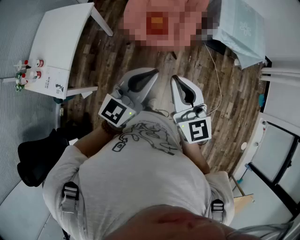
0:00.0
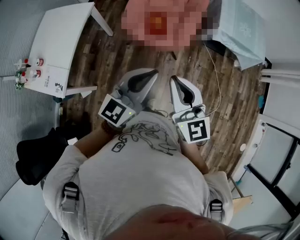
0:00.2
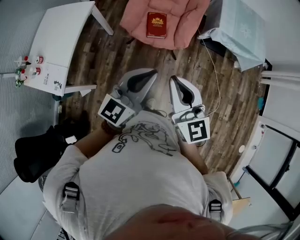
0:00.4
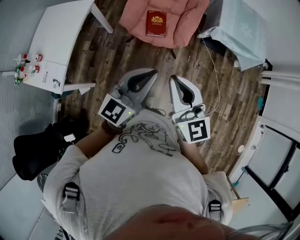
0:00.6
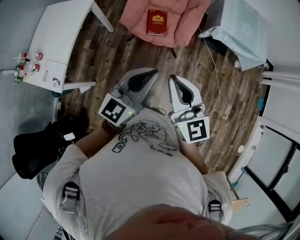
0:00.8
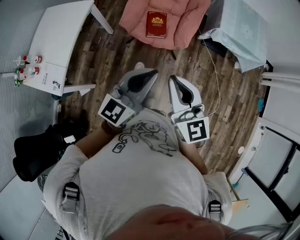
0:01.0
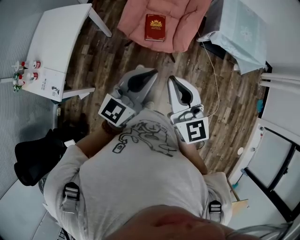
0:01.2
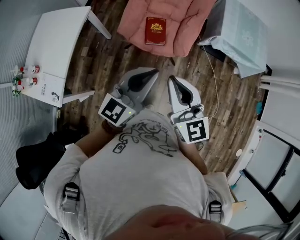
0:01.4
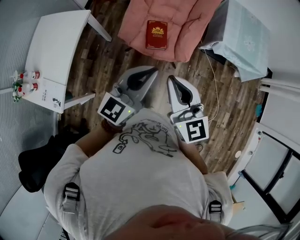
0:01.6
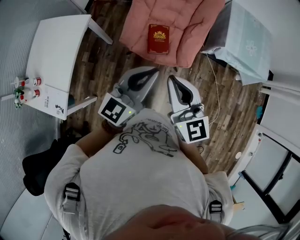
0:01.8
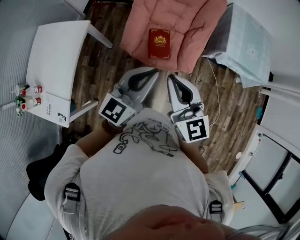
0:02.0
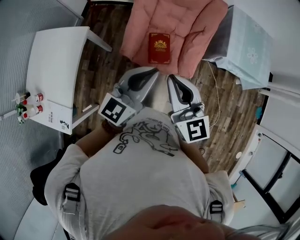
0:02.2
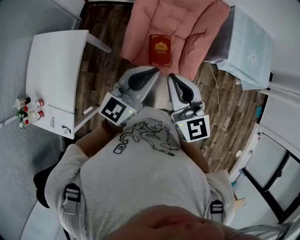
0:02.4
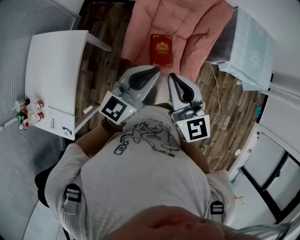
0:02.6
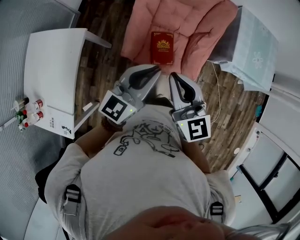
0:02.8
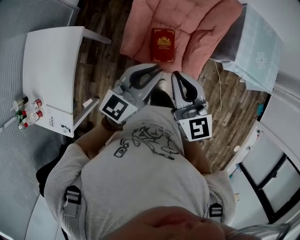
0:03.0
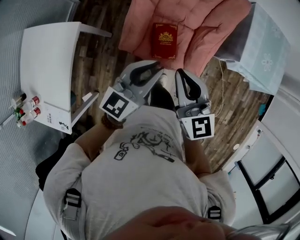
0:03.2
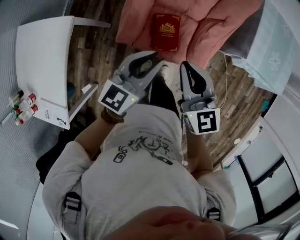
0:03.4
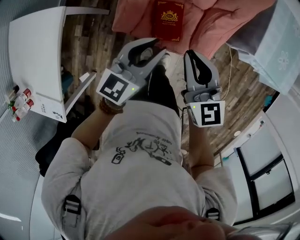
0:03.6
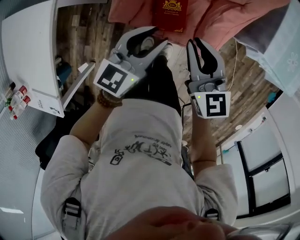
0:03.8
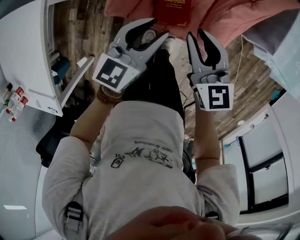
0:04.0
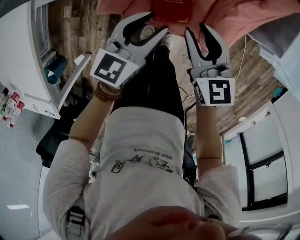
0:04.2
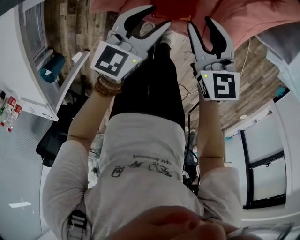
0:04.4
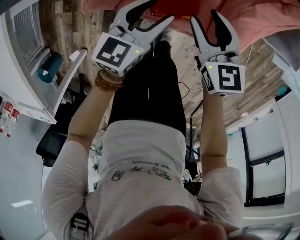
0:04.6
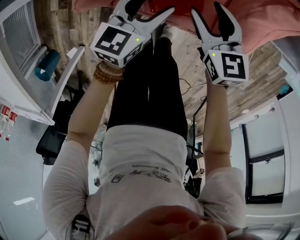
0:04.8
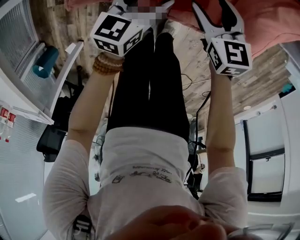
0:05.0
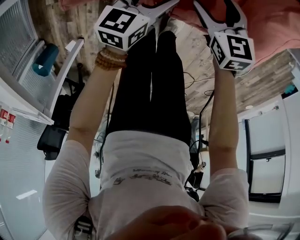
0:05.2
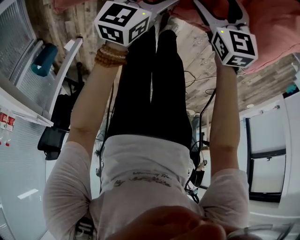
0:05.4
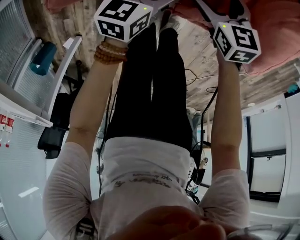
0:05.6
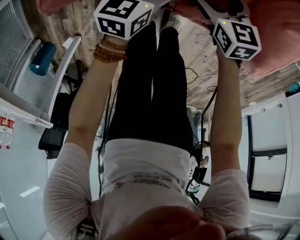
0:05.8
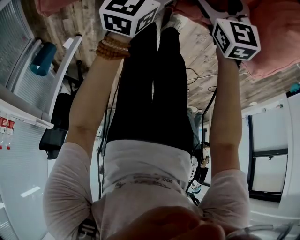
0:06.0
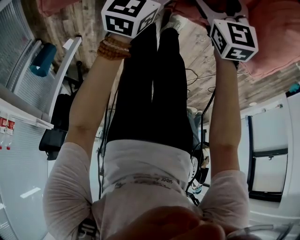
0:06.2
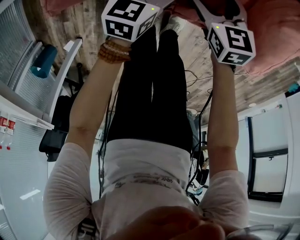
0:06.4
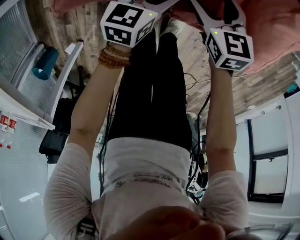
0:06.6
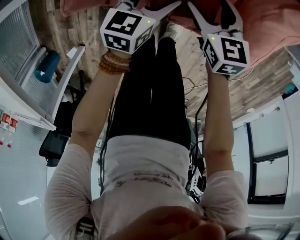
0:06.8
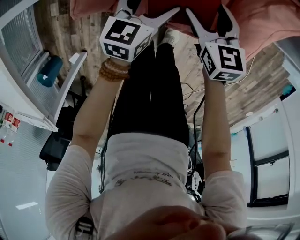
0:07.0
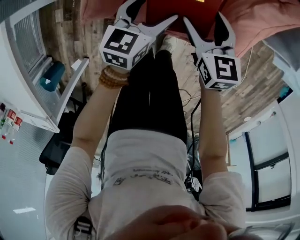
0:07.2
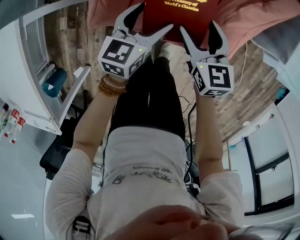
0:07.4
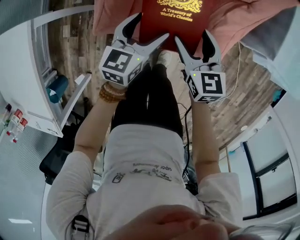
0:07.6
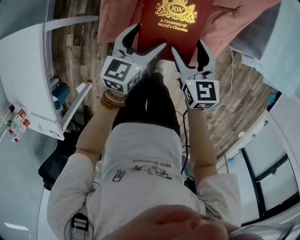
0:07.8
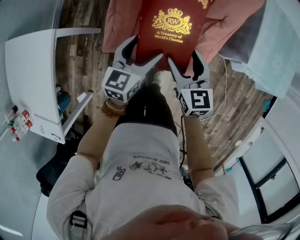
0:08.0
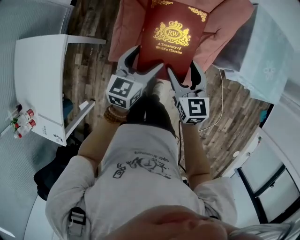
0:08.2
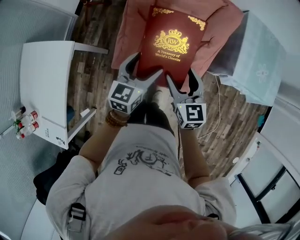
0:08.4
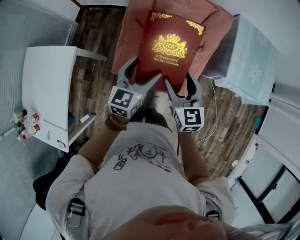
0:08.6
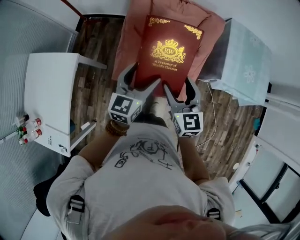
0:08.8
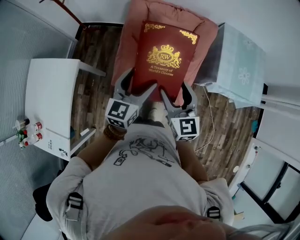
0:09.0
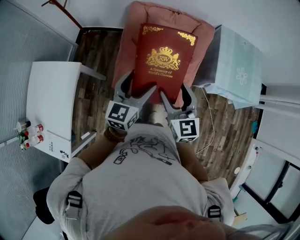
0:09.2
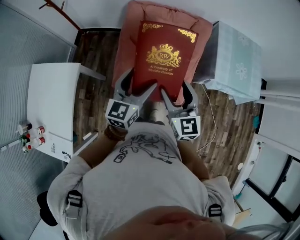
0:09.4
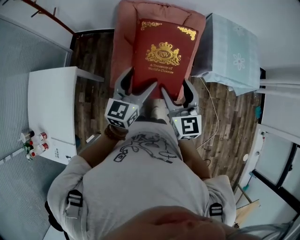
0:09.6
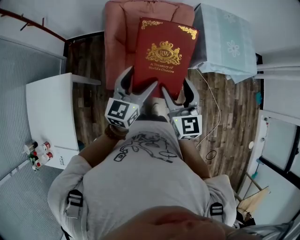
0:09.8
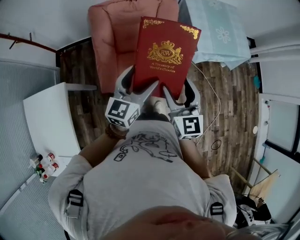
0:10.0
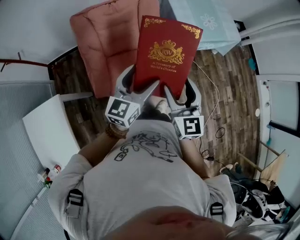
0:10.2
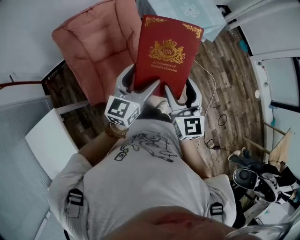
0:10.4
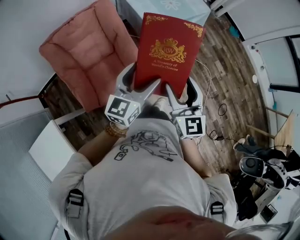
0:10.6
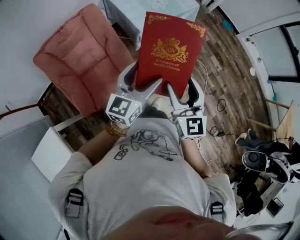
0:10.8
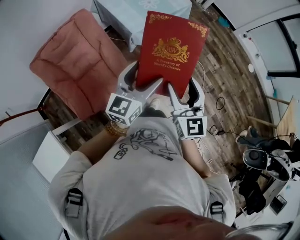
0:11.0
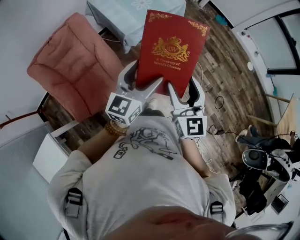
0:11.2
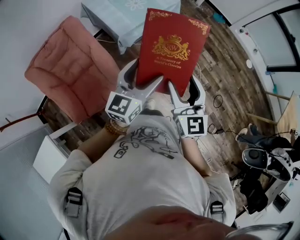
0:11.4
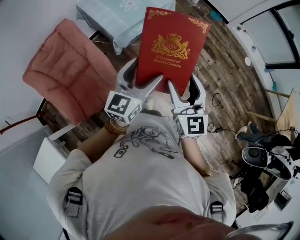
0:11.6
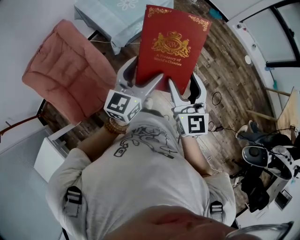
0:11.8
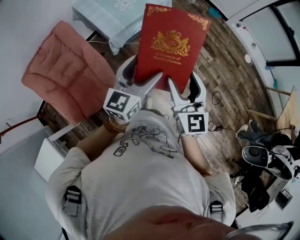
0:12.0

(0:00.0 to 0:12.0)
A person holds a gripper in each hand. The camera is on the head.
0:00.0 - 0:01.6: The two grippers go approximately 15 cm forward.
0:01.6 - 0:03.0: Both grippers move forward, roughly 30 cm.
0:03.0 - 0:04.4: Both grippers travel together downward, approximately 40 cm. The left gripper turns by about 20 degrees; the right gripper turns by roughly 20 degrees, and opens.
0:04.4 - 0:06.0: The grippers both shift downward by approximately 35 cm. The left gripper opens up; the right gripper opens up.
0:06.0 - 0:07.6: Both grippers move upward, roughly 35 cm.
0:07.6 - 0:09.0: Both grippers travel together upward, some 40 cm. The left gripper turns by about 20 degrees. The right gripper turns by approximately 20 degrees.
0:09.0 - 0:10.4: The right gripper moves approximately 25 cm, and turns by approximately 40 degrees, while the left gripper ends up roughly 25 cm from where it was, and changes its angle by roughly 40 degrees.
0:10.4 - 0:12.0: The two grippers travel together, to the right, about 40 cm.

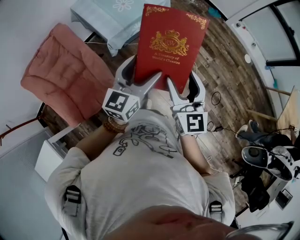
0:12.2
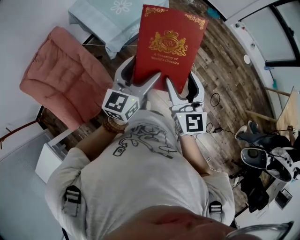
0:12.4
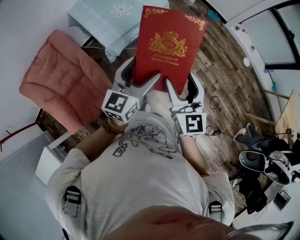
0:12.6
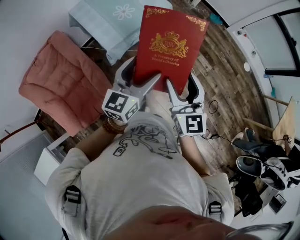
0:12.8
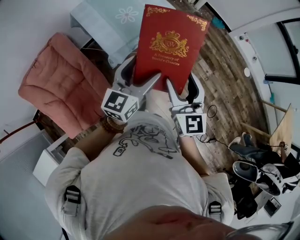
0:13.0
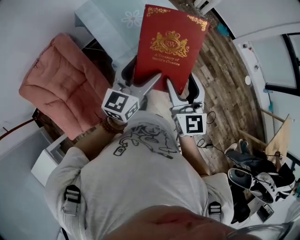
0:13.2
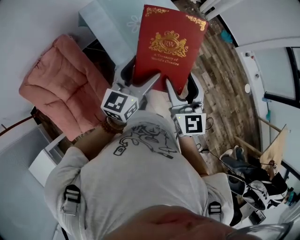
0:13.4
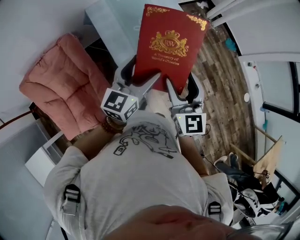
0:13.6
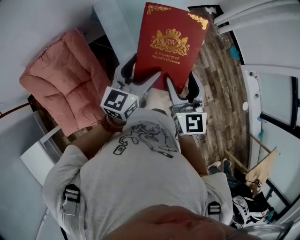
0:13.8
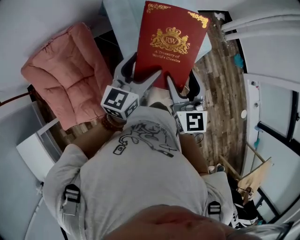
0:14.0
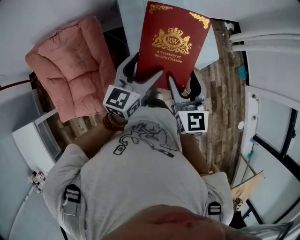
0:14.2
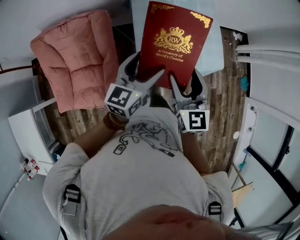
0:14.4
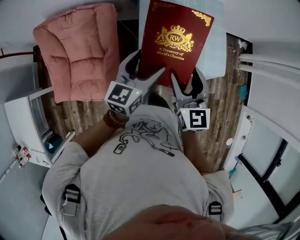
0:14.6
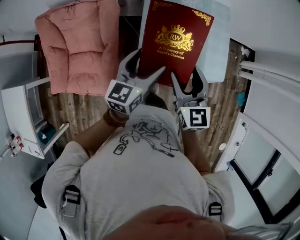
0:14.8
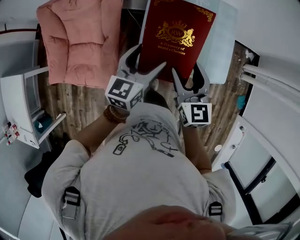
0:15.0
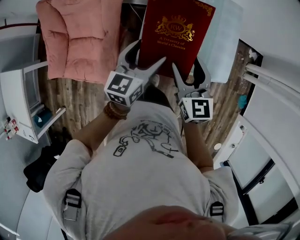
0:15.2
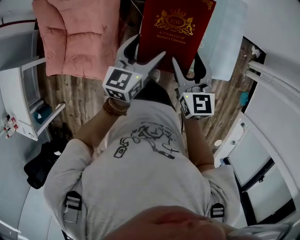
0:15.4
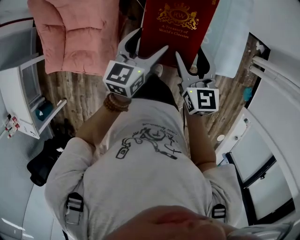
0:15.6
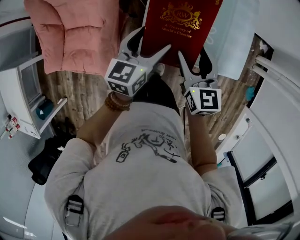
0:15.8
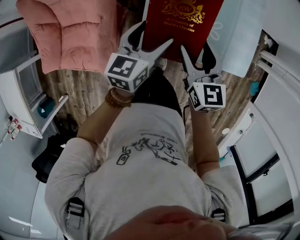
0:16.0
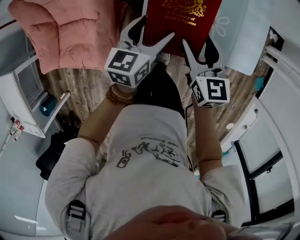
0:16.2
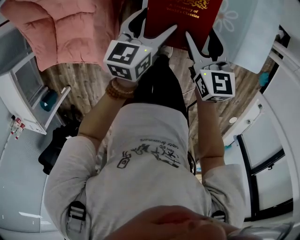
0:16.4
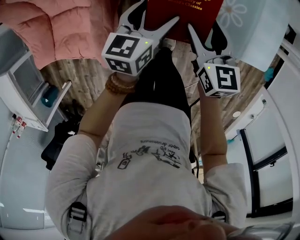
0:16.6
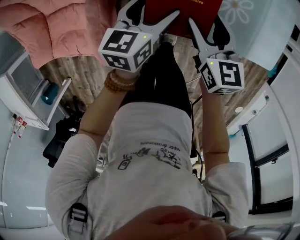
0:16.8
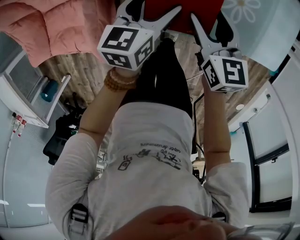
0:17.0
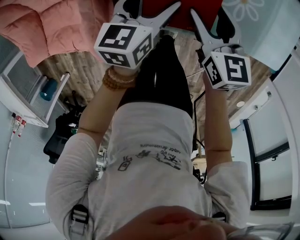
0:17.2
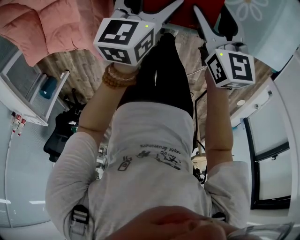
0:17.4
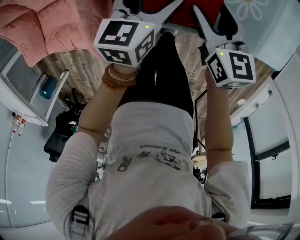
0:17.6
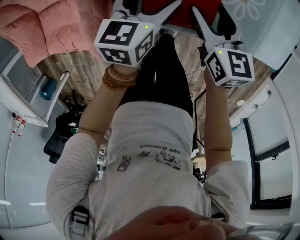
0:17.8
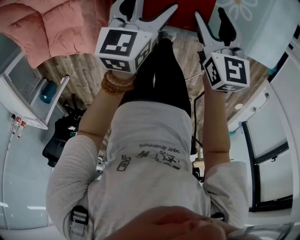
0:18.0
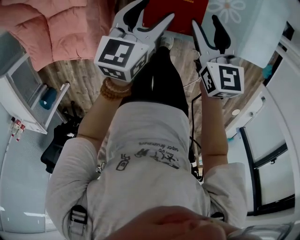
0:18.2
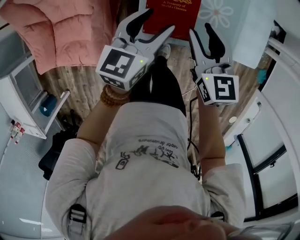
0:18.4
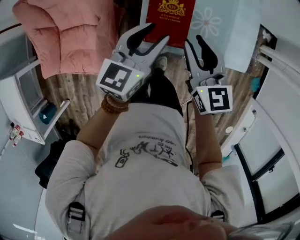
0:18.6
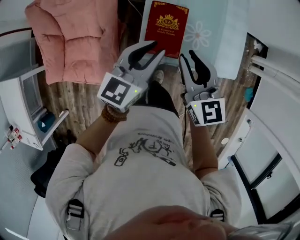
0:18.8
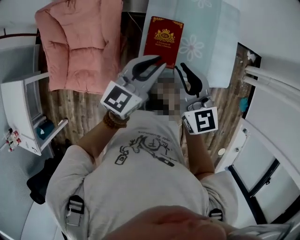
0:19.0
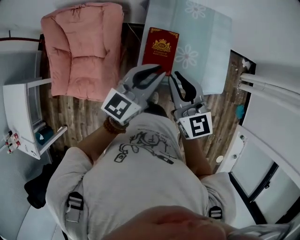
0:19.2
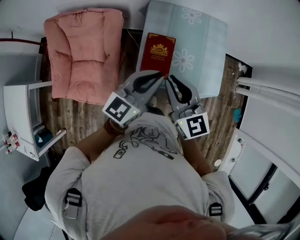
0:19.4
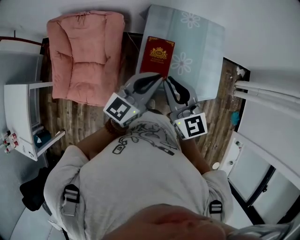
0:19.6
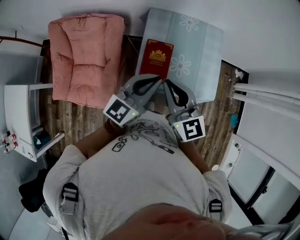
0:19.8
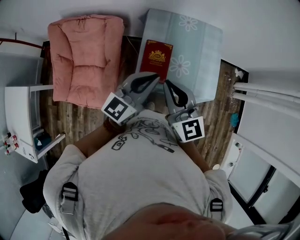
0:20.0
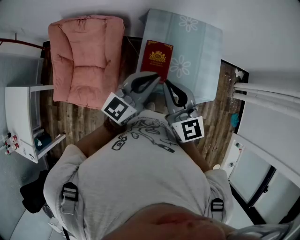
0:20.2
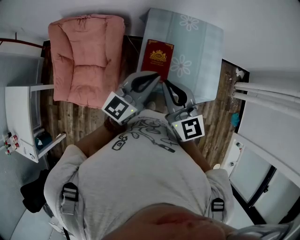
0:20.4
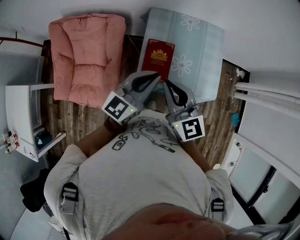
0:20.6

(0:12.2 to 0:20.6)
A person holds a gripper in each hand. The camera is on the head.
0:12.2 - 0:13.6: The two grippers go approximately 40 cm forward and to the left.
0:13.6 - 0:15.0: The right gripper moves some 25 cm, and swivels some 40 degrees. The left gripper shifts by about 20 cm, and swivels some 40 degrees.
0:15.0 - 0:16.4: The two grippers go roughly 25 cm downward.
0:16.4 - 0:17.8: The two grippers go some 10 cm downward.
0:17.8 - 0:19.2: Both grippers move upward, some 40 cm. The left gripper turns by about 30 degrees, and closes up; the right gripper rotates roughly 30 degrees, and closes its fingers.
0:19.2 - 0:20.6: The two grippers go approximately 5 cm upward.

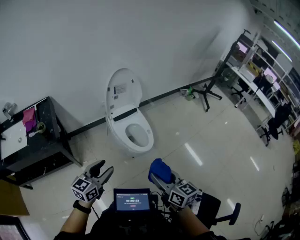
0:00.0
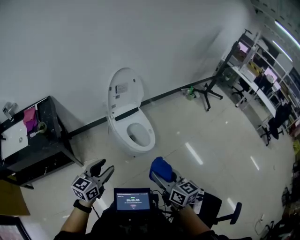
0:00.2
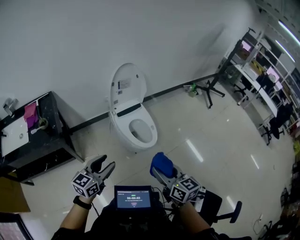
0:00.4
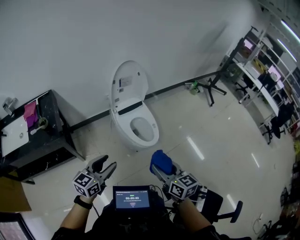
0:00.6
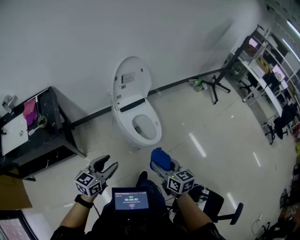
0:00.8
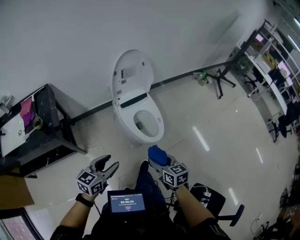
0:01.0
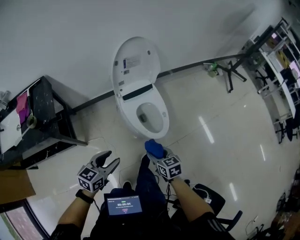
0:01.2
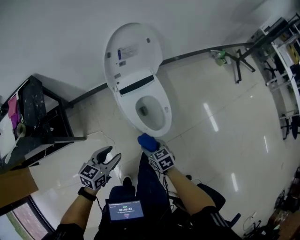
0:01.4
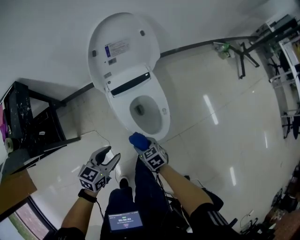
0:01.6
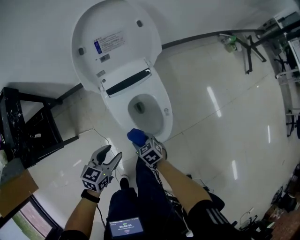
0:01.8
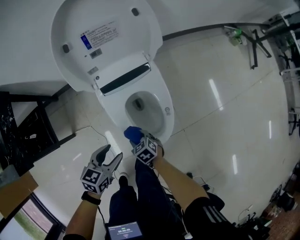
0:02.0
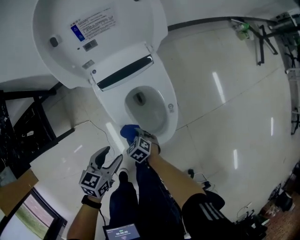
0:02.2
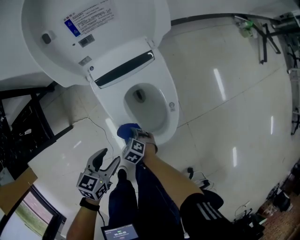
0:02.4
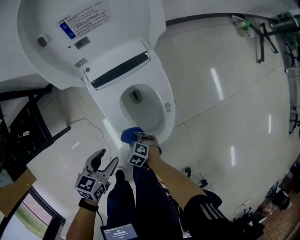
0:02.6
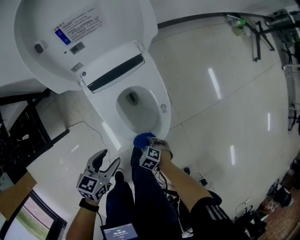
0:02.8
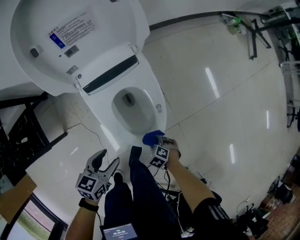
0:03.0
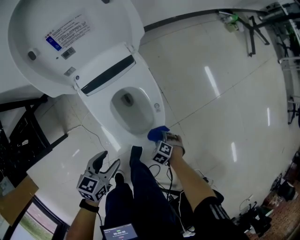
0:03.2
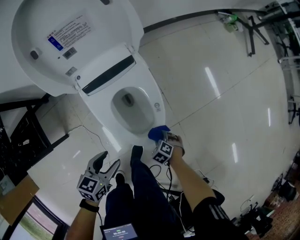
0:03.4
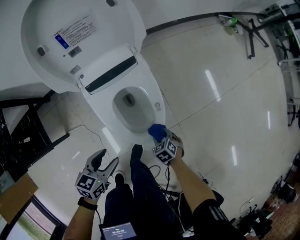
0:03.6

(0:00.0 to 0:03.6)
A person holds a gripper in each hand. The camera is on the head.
0:00.0 - 0:01.8: Both grippers move downward and forward, approximately 60 cm. The left gripper changes its angle by approximately 30 degrees, while the right gripper tips its fingers downward by some 40 degrees.
0:01.8 - 0:03.6: The right gripper changes place by some 20 cm, and swivels roughly 20 degrees, while the left gripper is displaced downward by some 5 cm.
